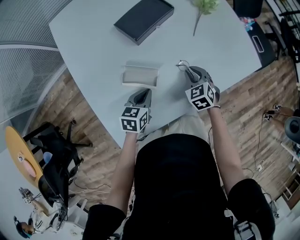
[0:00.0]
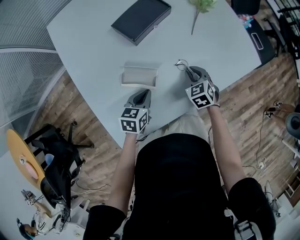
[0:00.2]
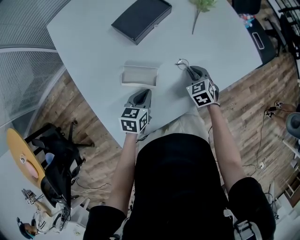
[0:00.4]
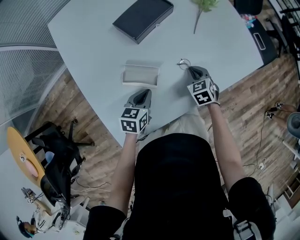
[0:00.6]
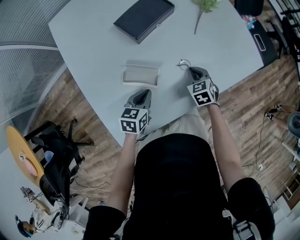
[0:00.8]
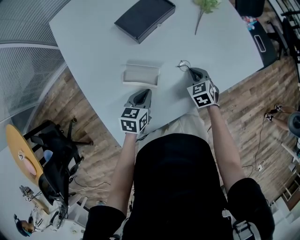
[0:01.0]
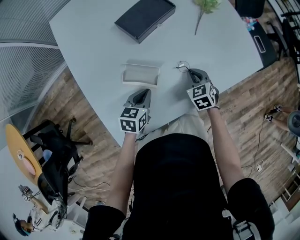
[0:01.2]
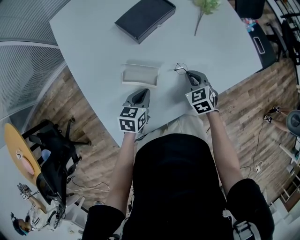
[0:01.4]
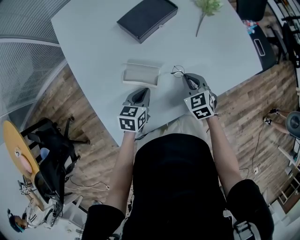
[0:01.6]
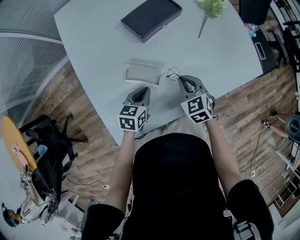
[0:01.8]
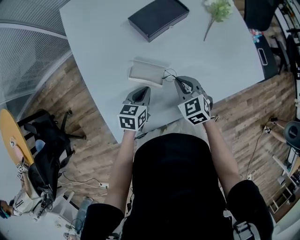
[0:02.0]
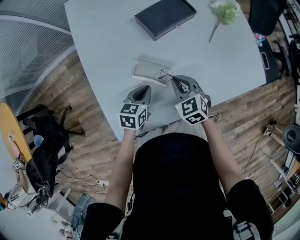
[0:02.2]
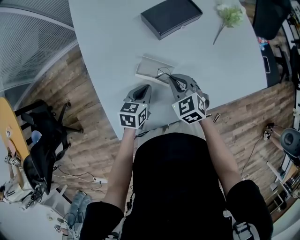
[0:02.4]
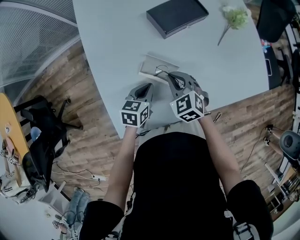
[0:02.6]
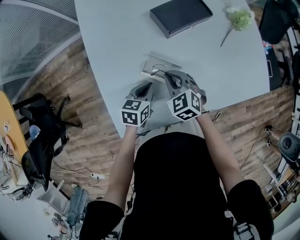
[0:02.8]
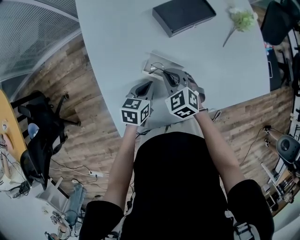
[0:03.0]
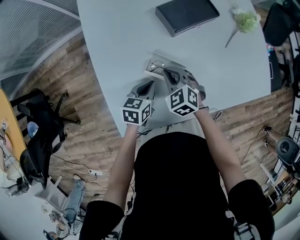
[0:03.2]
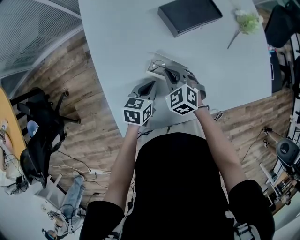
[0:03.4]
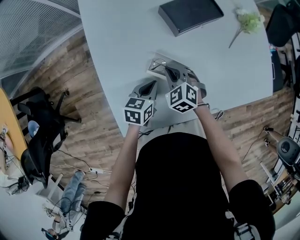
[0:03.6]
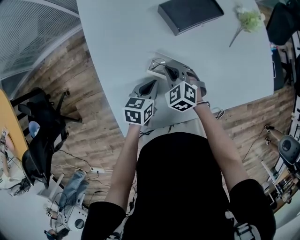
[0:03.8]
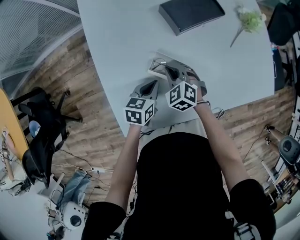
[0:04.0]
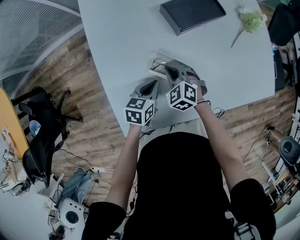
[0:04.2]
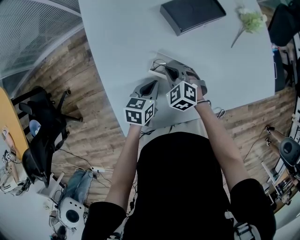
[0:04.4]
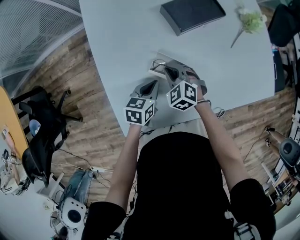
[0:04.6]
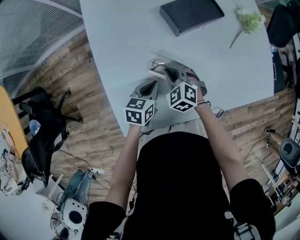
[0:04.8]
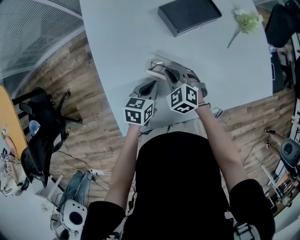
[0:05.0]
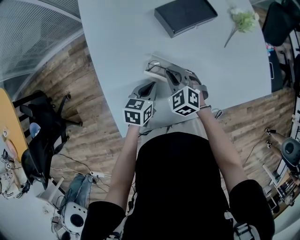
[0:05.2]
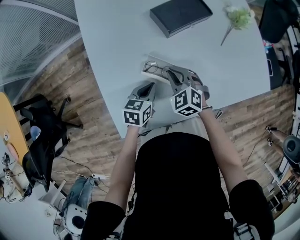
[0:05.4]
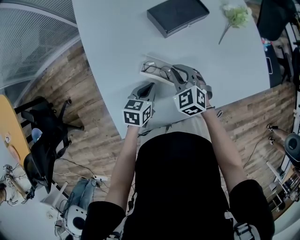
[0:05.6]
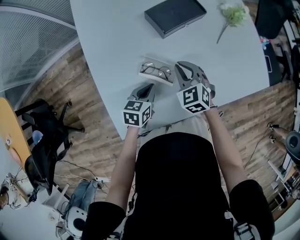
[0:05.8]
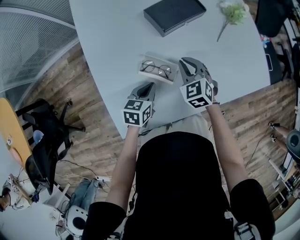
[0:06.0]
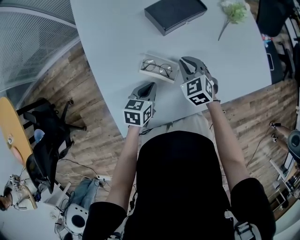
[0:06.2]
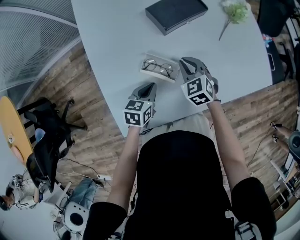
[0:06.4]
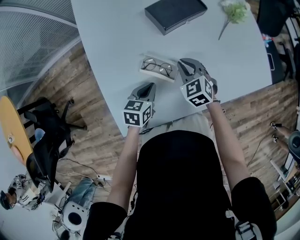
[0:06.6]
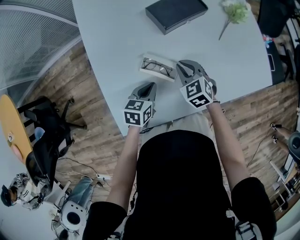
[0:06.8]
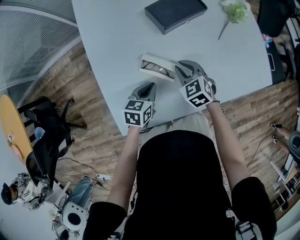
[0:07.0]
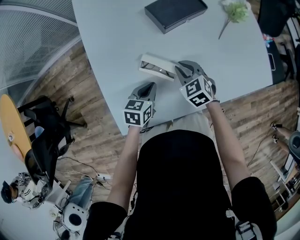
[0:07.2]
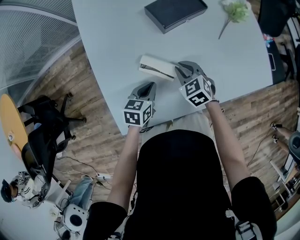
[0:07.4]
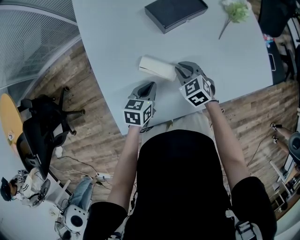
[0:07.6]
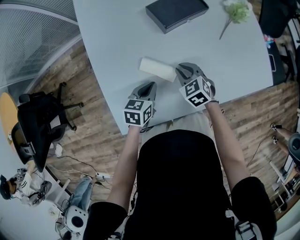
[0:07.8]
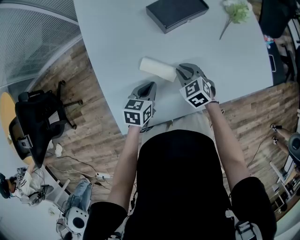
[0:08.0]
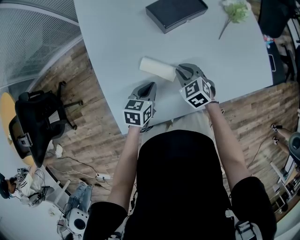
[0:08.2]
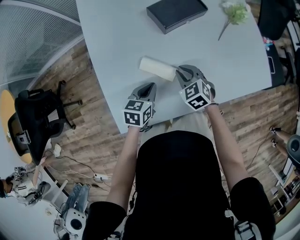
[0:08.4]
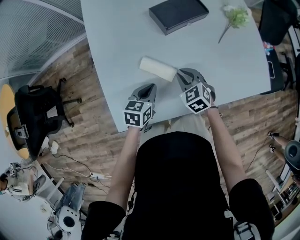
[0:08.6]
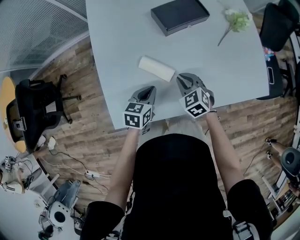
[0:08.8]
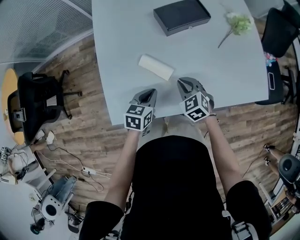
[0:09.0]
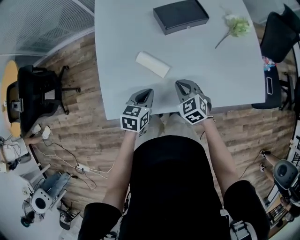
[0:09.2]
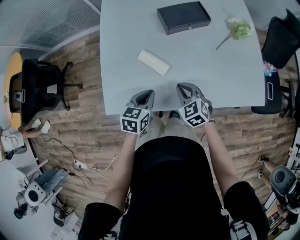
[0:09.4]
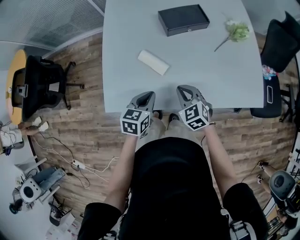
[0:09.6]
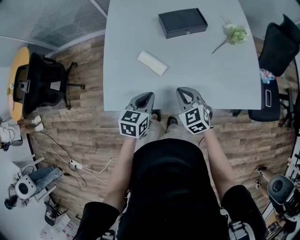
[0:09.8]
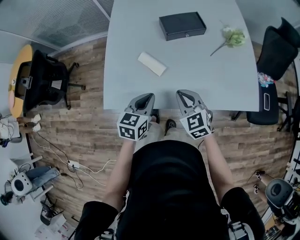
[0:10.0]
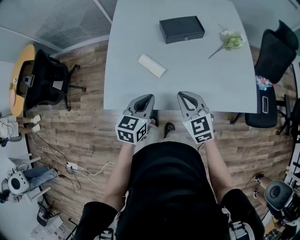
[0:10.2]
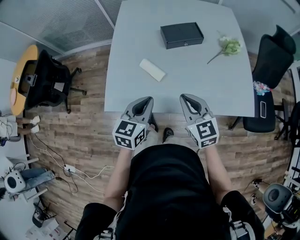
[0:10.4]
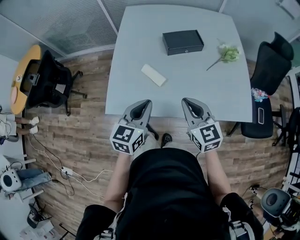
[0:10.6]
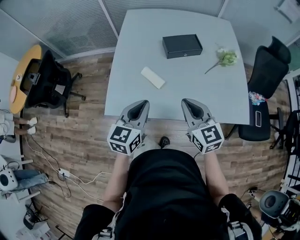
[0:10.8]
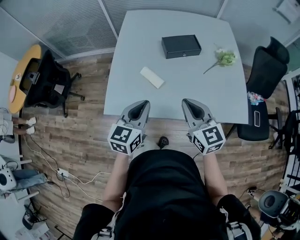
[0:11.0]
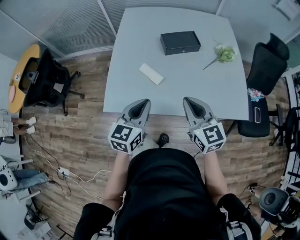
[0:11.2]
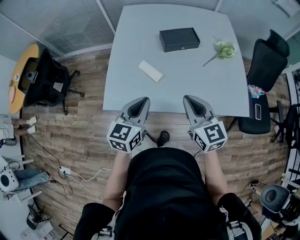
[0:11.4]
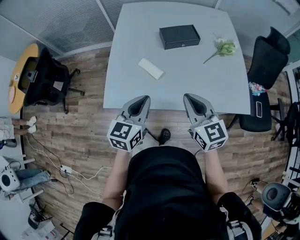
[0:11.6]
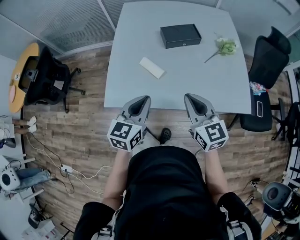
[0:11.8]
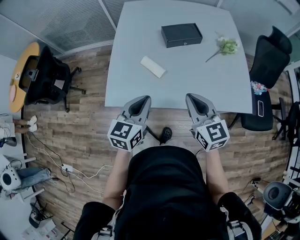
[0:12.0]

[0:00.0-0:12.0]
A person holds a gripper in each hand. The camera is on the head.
0.0 to 1.6 s: The grippers move only a little.
1.6 to 3.0 s: The right gripper heads to the left, covering approximately 20 cm, and changes its angle by some 20 degrees, while the left gripper travels to the left by some 10 cm.
3.0 to 4.4 s: The right gripper heads downward, covering about 5 cm.
4.4 to 6.0 s: The right gripper is displaced to the right and upward by approximately 15 cm, and turns by about 20 degrees.
6.0 to 7.6 s: The right gripper shifts by roughly 5 cm.
7.6 to 9.0 s: The two grippers go roughly 5 cm backward.
9.0 to 10.4 s: The two grippers go some 20 cm upward and backward. The right gripper turns by roughly 30 degrees; the left gripper swivels roughly 20 degrees.
10.4 to 12.0 s: The right gripper moves about 5 cm. The left gripper shifts by some 5 cm.

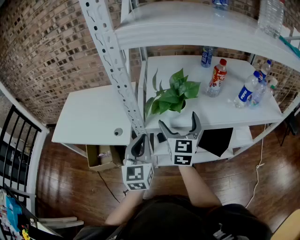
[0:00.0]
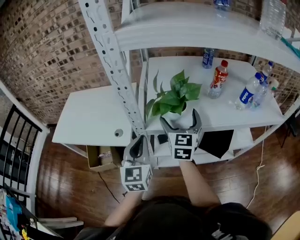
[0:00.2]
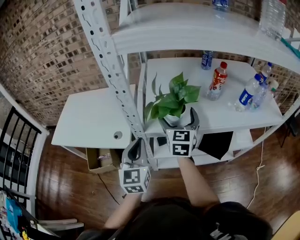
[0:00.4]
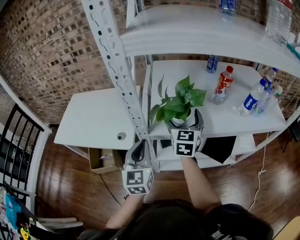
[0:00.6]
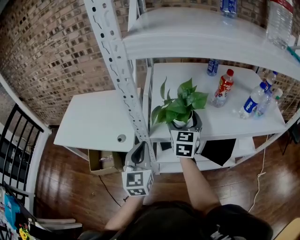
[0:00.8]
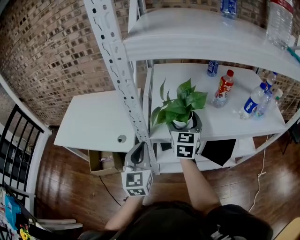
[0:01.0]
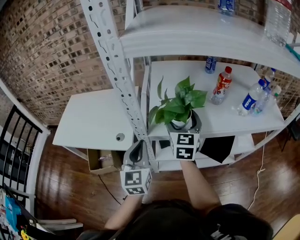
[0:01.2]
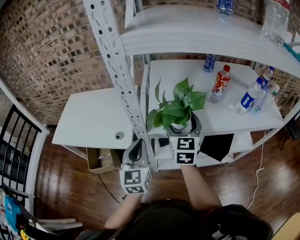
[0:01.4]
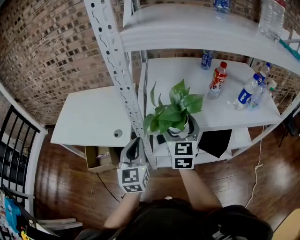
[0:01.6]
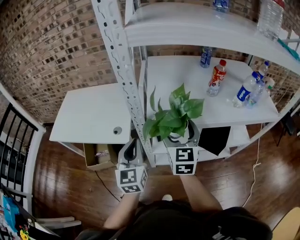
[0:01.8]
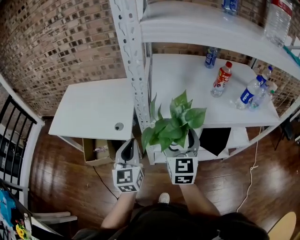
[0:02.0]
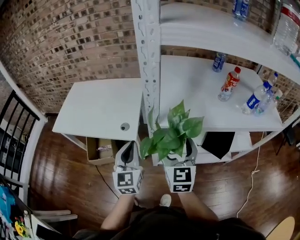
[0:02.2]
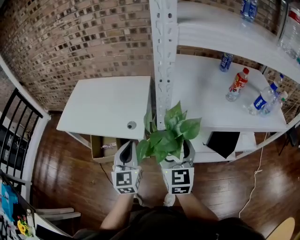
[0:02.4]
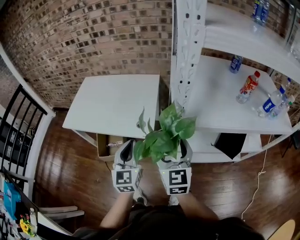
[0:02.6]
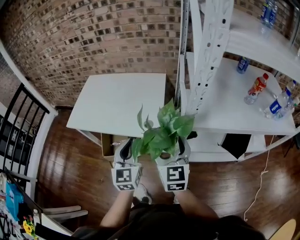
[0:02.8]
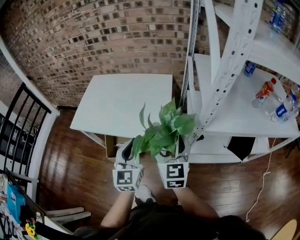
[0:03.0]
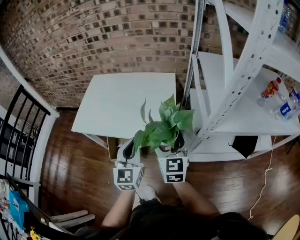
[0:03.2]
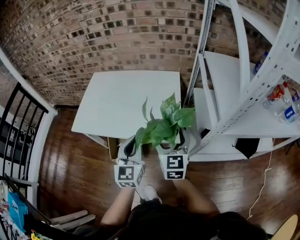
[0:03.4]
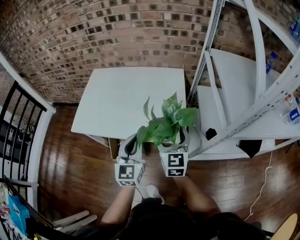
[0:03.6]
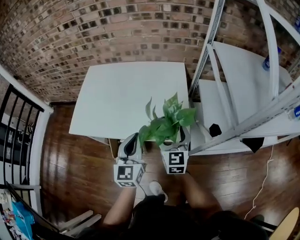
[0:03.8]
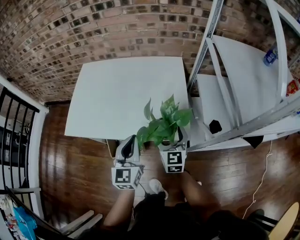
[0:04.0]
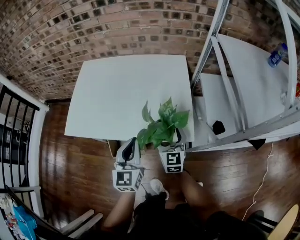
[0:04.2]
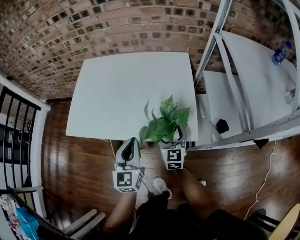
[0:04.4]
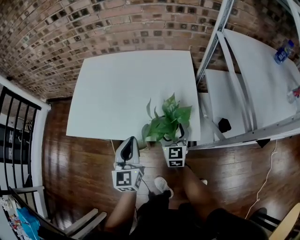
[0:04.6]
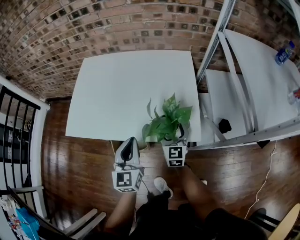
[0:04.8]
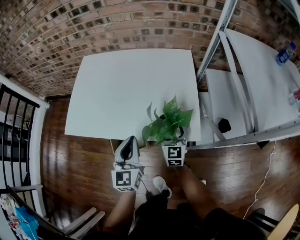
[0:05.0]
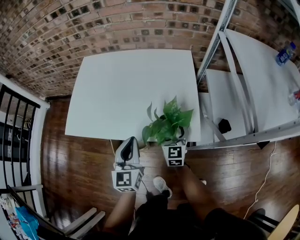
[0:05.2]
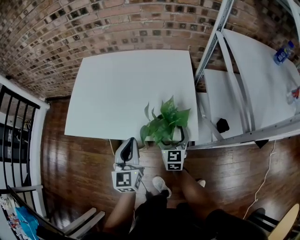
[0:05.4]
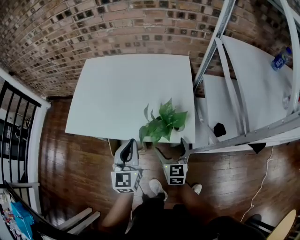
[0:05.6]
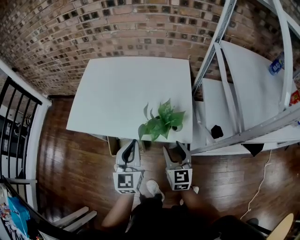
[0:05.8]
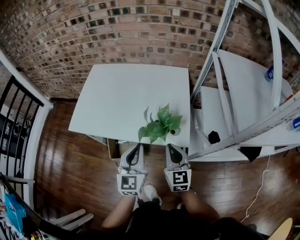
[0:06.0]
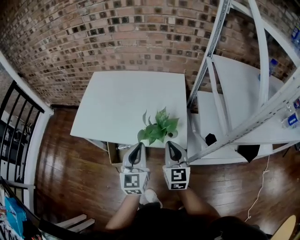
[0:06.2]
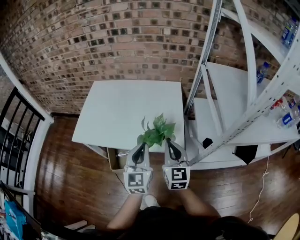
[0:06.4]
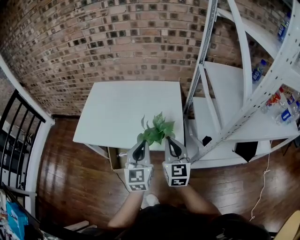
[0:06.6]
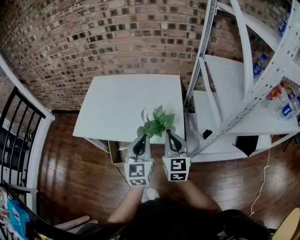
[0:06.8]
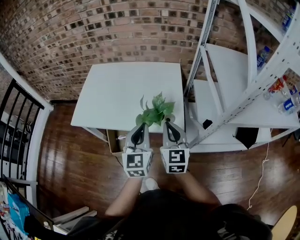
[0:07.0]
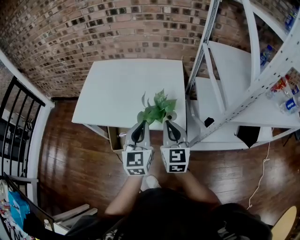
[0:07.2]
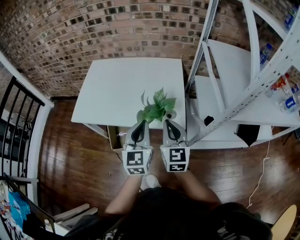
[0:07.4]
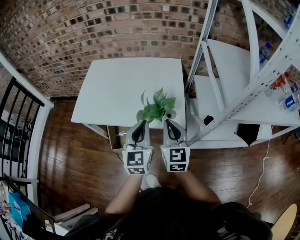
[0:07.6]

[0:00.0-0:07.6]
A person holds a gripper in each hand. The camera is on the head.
0.0 to 1.6 s: The right gripper moves about 5 cm forward and comes back.
1.6 to 3.0 s: Both grippers travel together to the left, some 30 cm.
3.0 to 4.6 s: The left gripper heads to the left, downward and forward, covering roughly 25 cm. Meanwhile the right gripper is displaced downward, forward and to the left by about 35 cm.
4.6 to 6.0 s: The right gripper goes approximately 15 cm backward and upward, and closes up. Meanwhile the left gripper goes roughly 5 cm backward and to the right.
6.0 to 7.6 s: The right gripper travels upward by some 10 cm; the left gripper goes roughly 5 cm upward.

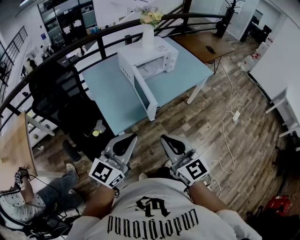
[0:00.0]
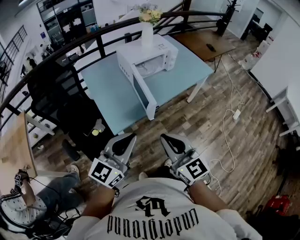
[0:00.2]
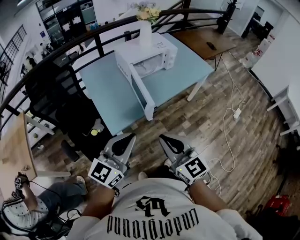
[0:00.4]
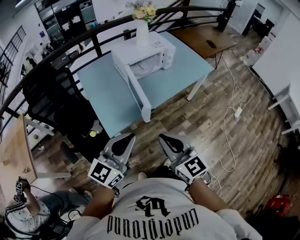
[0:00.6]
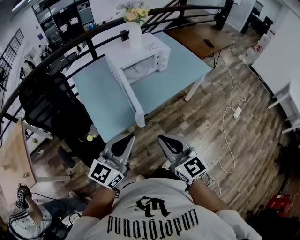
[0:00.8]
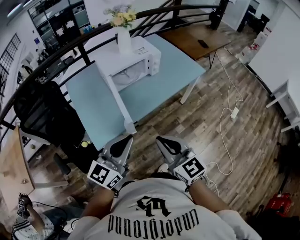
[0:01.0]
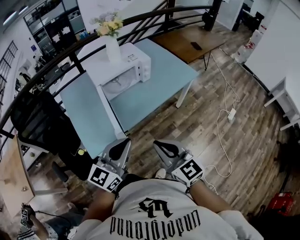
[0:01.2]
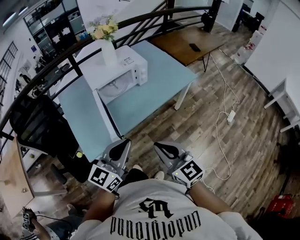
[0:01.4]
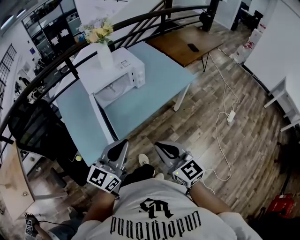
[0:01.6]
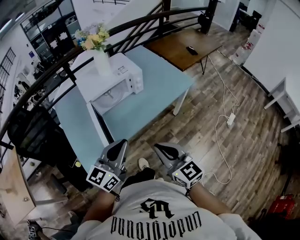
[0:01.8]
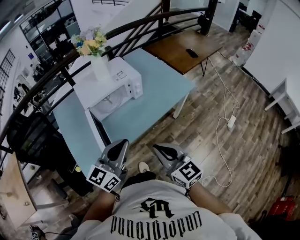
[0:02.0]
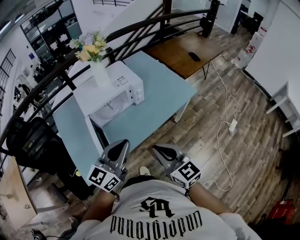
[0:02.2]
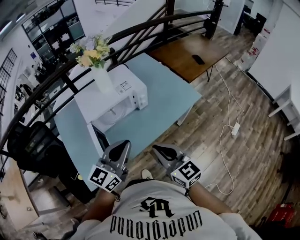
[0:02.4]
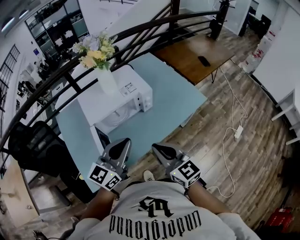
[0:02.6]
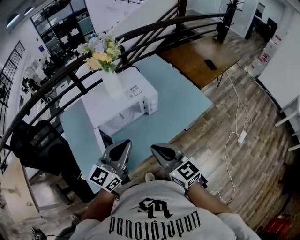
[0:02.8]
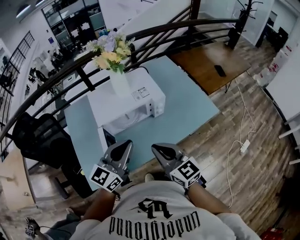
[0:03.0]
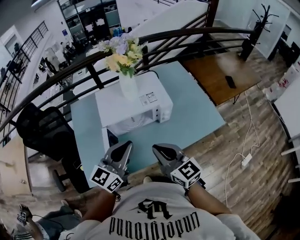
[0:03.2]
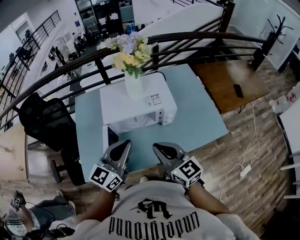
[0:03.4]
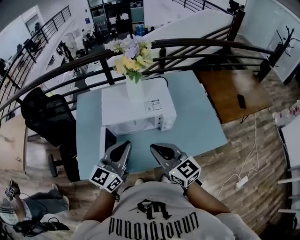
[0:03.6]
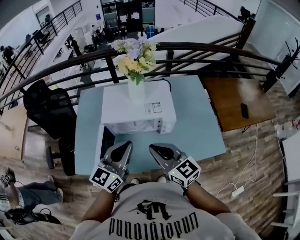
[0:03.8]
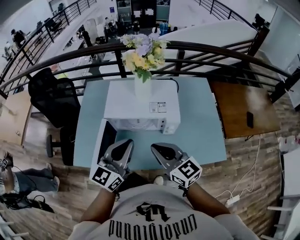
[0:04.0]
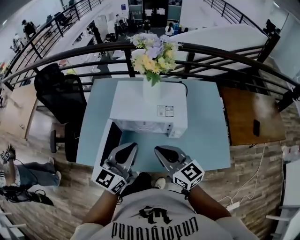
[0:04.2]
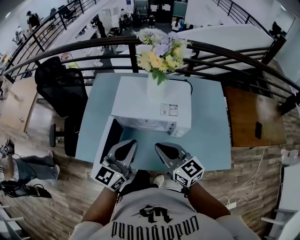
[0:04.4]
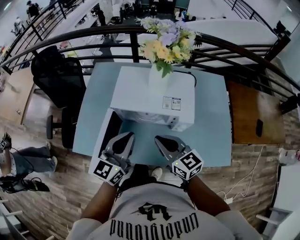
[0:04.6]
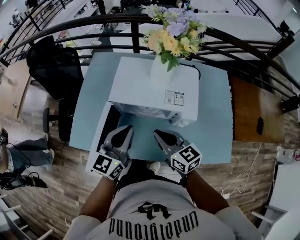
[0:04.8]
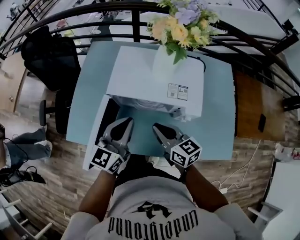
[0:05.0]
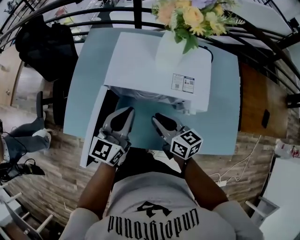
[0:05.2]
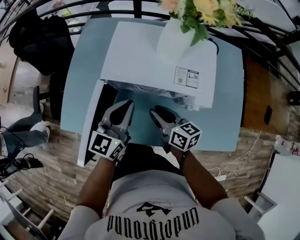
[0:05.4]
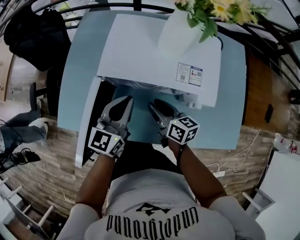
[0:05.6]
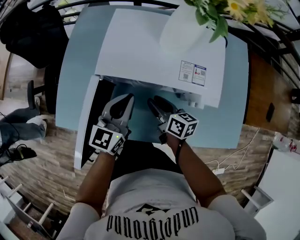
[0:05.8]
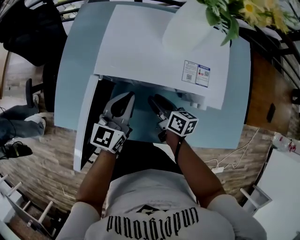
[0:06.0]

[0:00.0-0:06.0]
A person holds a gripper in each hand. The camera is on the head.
0.0 to 1.6 s: The two grippers go some 30 cm to the right and forward.
1.6 to 3.0 s: The two grippers go approximately 25 cm forward.
3.0 to 4.4 s: The right gripper ends up about 10 cm from where it was, and swivels approximately 30 degrees; the left gripper shifts by roughly 5 cm, and swivels roughly 30 degrees.
4.4 to 6.0 s: Both grippers travel together downward and forward, approximately 25 cm. The right gripper rotates around the line of its fingers by roughly 40 degrees, clockwise from behind, and opens its fingers.
